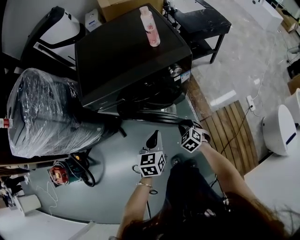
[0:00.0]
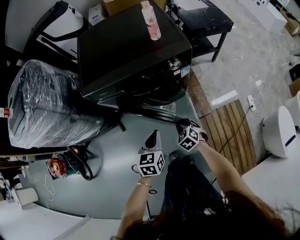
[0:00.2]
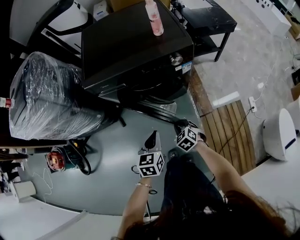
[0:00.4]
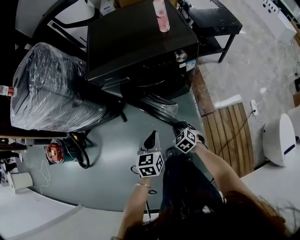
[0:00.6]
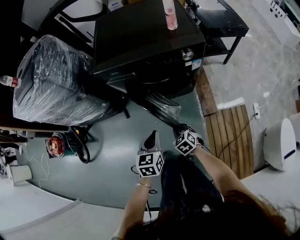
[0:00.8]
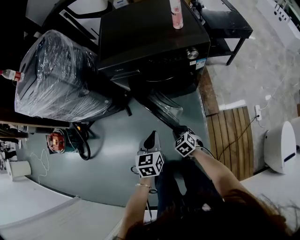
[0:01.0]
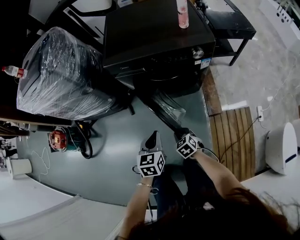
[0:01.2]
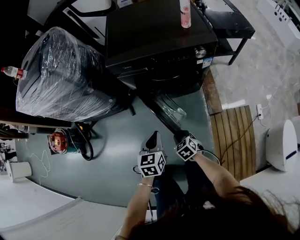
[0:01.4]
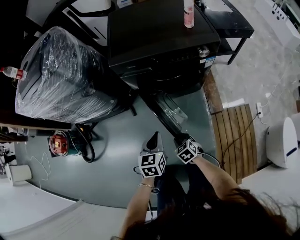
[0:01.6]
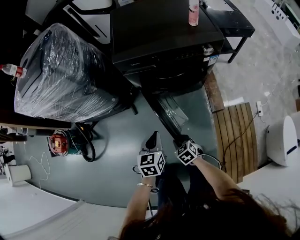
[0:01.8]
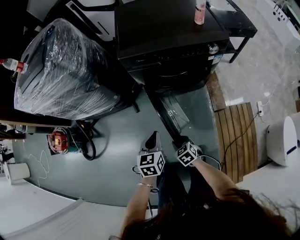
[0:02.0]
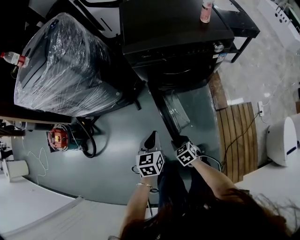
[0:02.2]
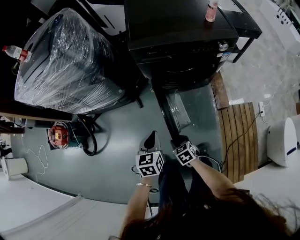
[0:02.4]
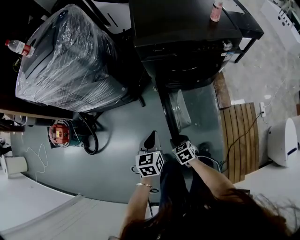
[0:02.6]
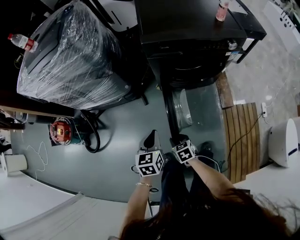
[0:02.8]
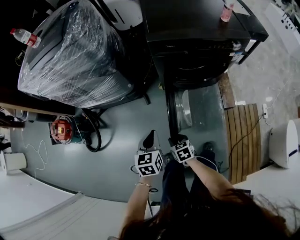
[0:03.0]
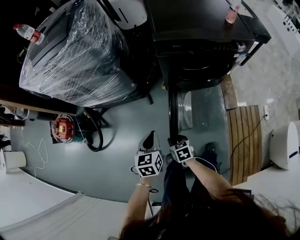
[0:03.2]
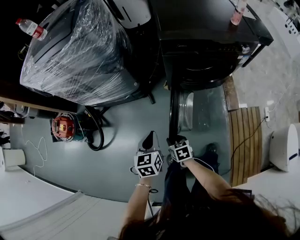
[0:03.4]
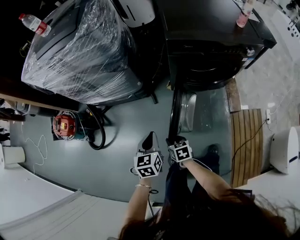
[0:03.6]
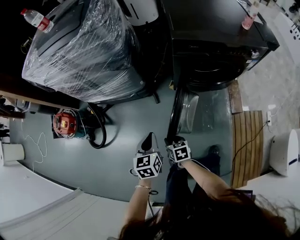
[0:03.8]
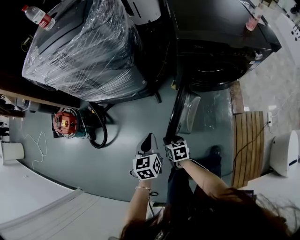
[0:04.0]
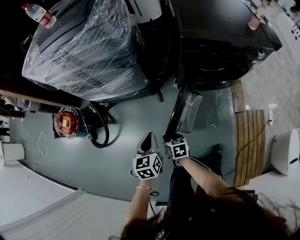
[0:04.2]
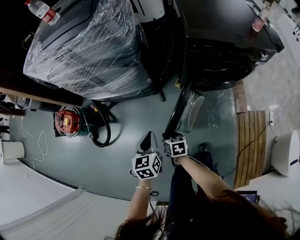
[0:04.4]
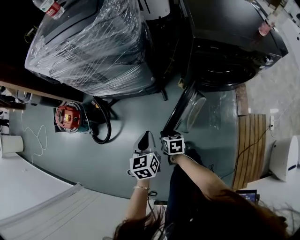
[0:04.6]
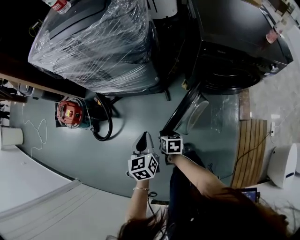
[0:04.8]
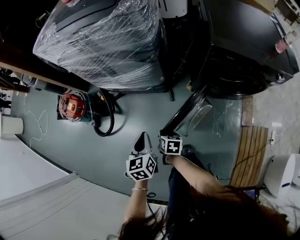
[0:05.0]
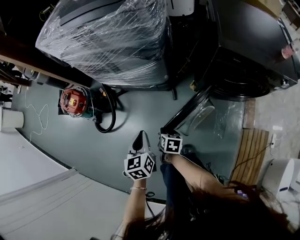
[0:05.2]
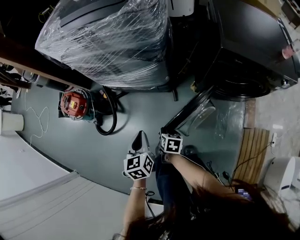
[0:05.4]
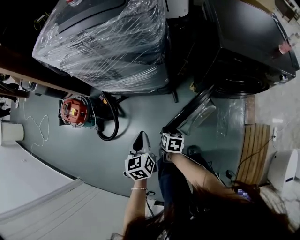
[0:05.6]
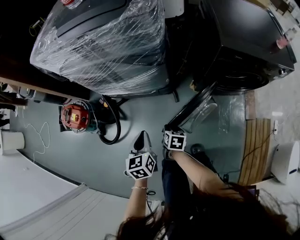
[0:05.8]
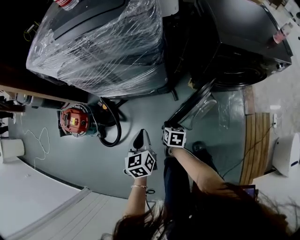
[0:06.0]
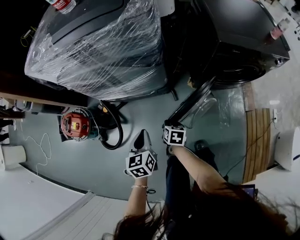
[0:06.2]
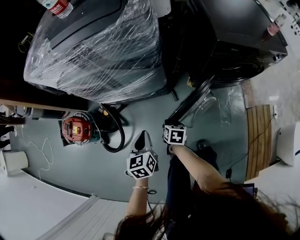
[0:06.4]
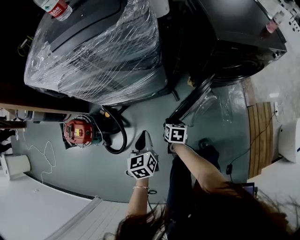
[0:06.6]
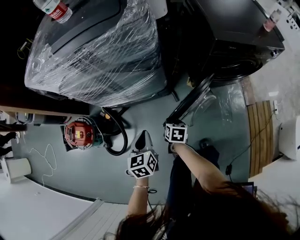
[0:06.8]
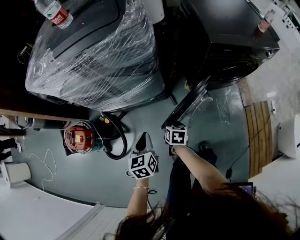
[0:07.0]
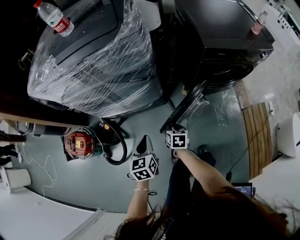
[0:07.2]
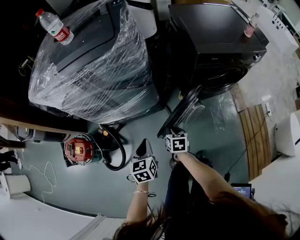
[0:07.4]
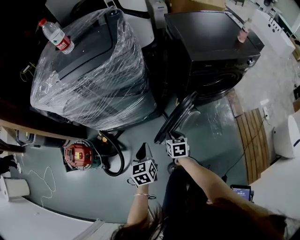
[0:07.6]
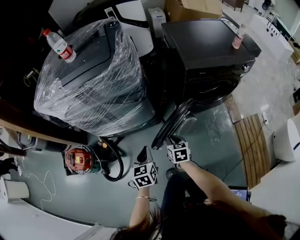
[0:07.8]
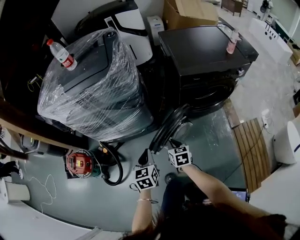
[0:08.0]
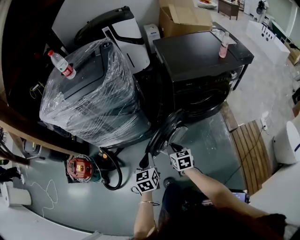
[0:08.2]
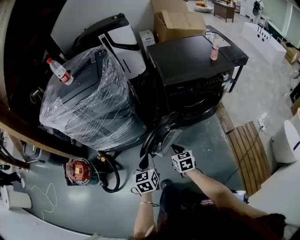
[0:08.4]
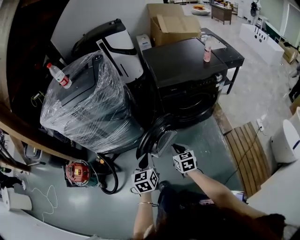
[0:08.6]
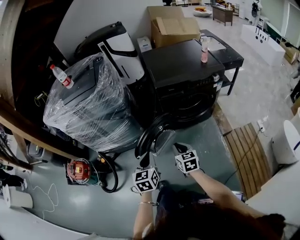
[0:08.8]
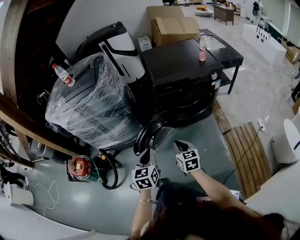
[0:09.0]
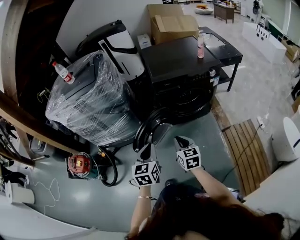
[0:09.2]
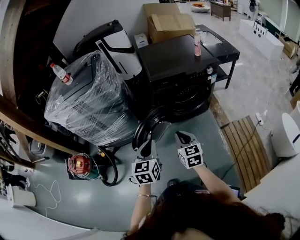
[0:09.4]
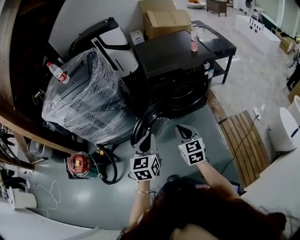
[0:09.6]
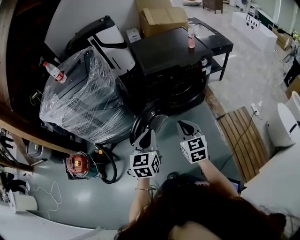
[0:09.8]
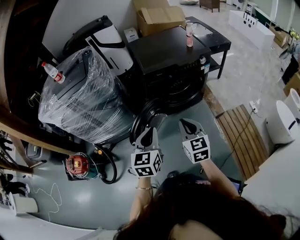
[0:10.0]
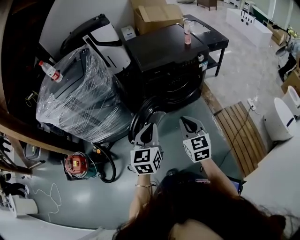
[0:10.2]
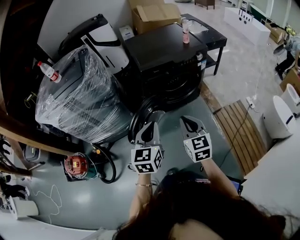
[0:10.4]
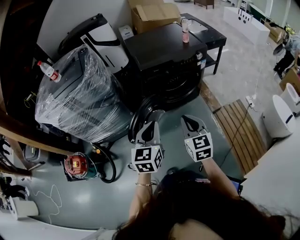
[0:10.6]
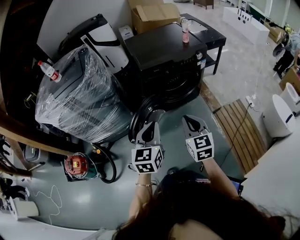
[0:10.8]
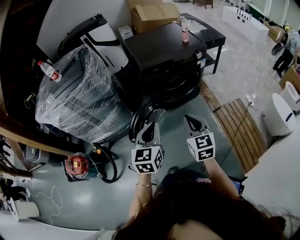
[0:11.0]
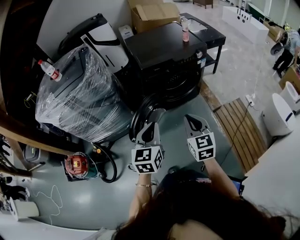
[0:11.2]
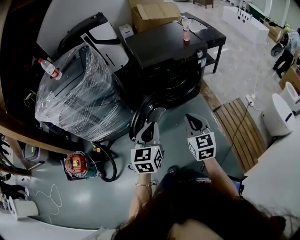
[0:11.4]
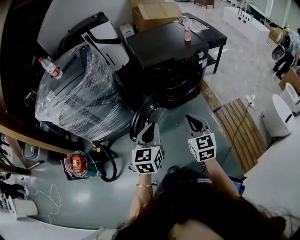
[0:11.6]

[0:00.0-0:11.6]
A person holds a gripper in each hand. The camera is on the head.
0:00.0 to 0:01.4: Both grippers travel together to the left and backward, approximately 20 cm.
0:01.4 to 0:02.8: The two grippers go some 20 cm to the left.
0:02.8 to 0:04.4: The right gripper goes some 20 cm to the left and forward. The left gripper moves to the left, some 20 cm.
0:04.4 to 0:05.8: The right gripper shifts approximately 15 cm forward and to the left. The left gripper travels to the left and forward by roughly 15 cm.
0:05.8 to 0:07.2: The right gripper moves roughly 5 cm.
0:07.2 to 0:08.8: Both grippers travel together to the right, upward and backward, about 35 cm. The right gripper turns by roughly 30 degrees.
0:08.8 to 0:10.2: The left gripper is displaced upward and to the right by some 15 cm. Meanwhile the right gripper moves upward, to the right and backward, about 20 cm, and changes its angle by some 20 degrees.
0:10.2 to 0:11.6: The grippers move only a little.

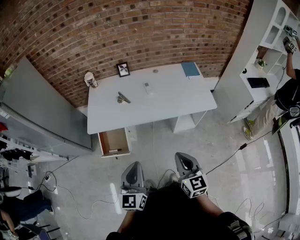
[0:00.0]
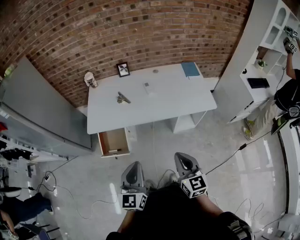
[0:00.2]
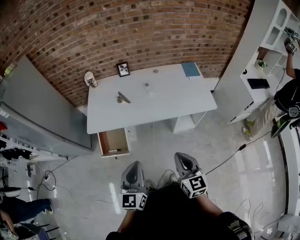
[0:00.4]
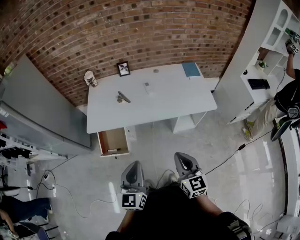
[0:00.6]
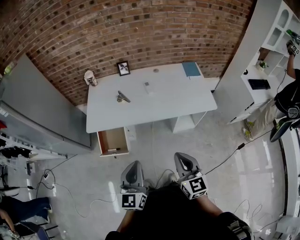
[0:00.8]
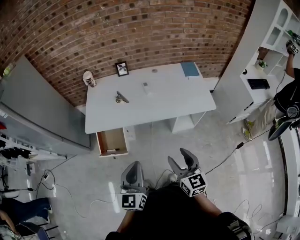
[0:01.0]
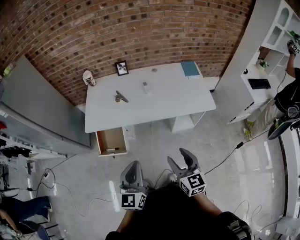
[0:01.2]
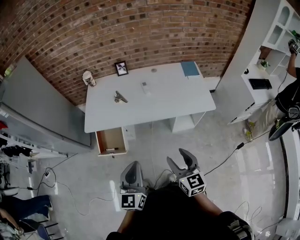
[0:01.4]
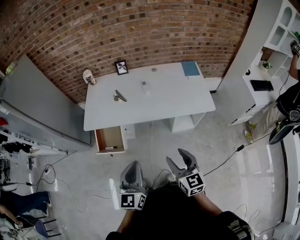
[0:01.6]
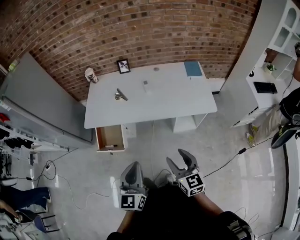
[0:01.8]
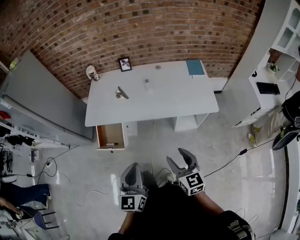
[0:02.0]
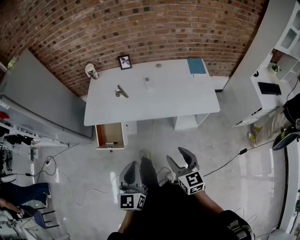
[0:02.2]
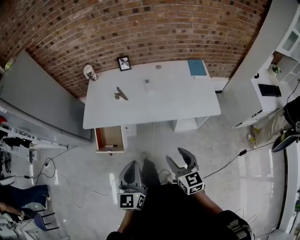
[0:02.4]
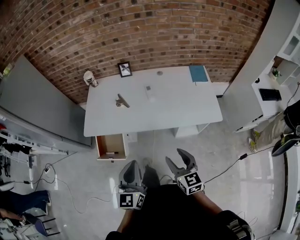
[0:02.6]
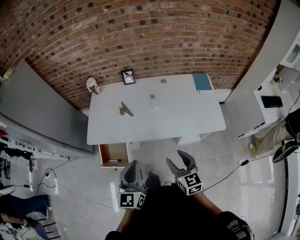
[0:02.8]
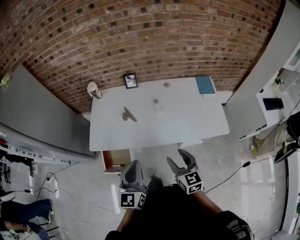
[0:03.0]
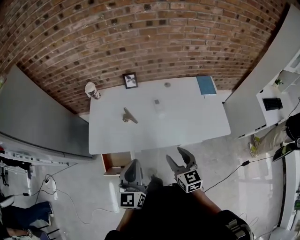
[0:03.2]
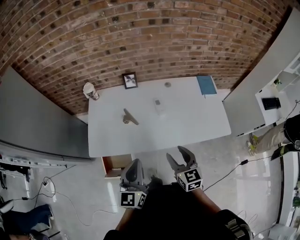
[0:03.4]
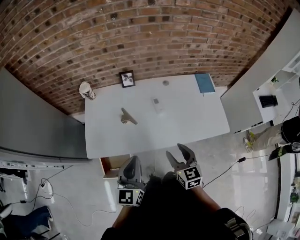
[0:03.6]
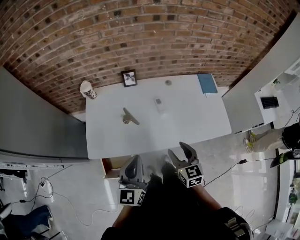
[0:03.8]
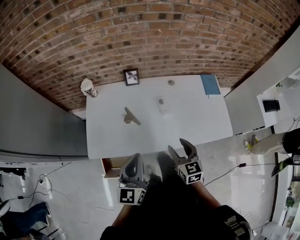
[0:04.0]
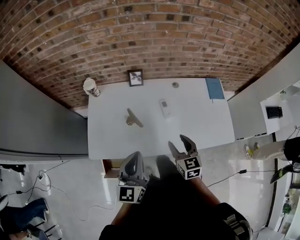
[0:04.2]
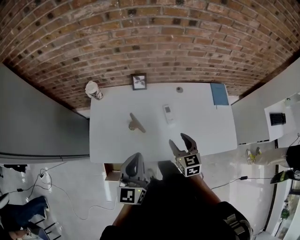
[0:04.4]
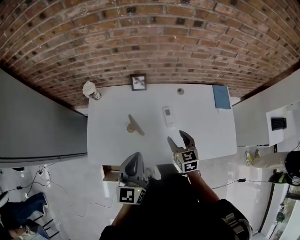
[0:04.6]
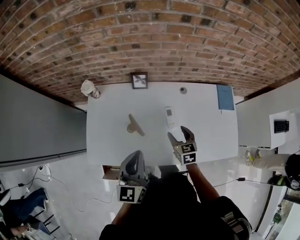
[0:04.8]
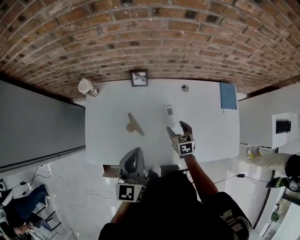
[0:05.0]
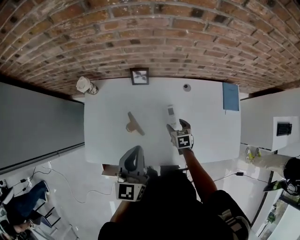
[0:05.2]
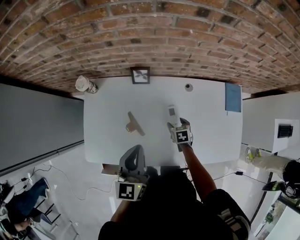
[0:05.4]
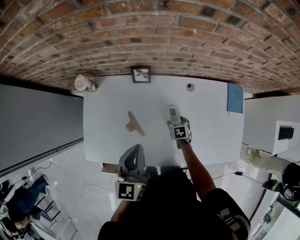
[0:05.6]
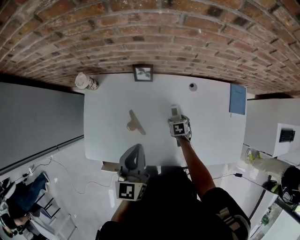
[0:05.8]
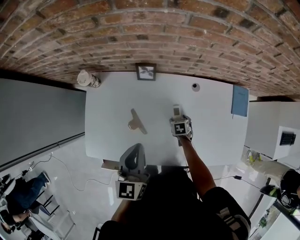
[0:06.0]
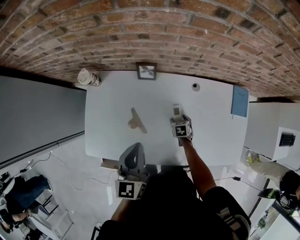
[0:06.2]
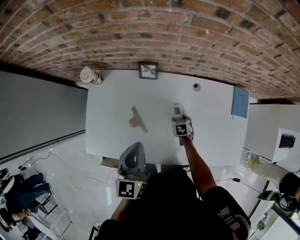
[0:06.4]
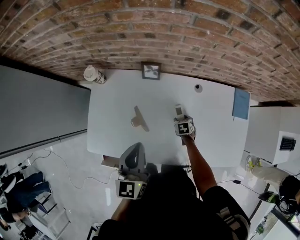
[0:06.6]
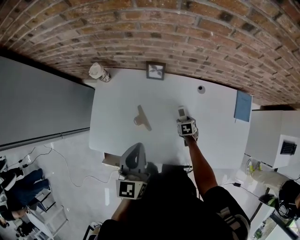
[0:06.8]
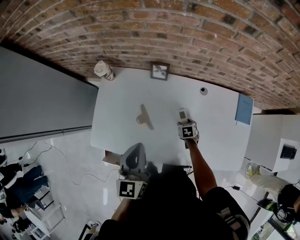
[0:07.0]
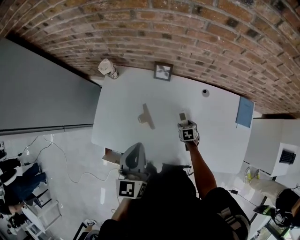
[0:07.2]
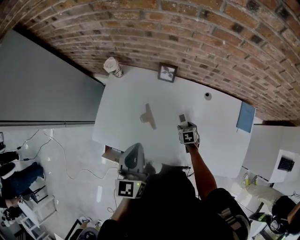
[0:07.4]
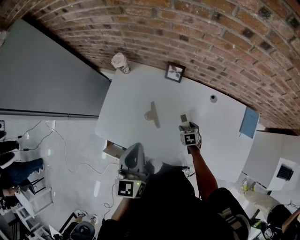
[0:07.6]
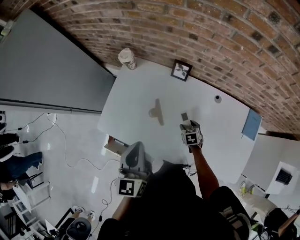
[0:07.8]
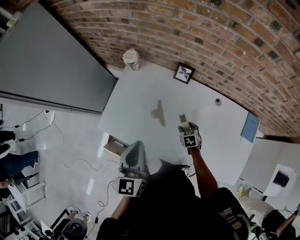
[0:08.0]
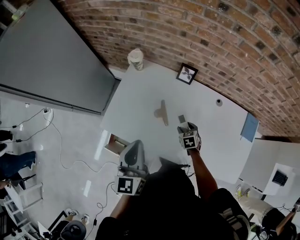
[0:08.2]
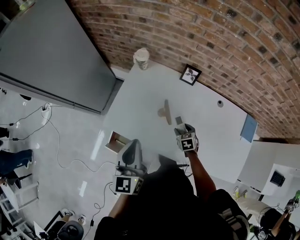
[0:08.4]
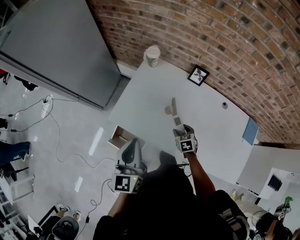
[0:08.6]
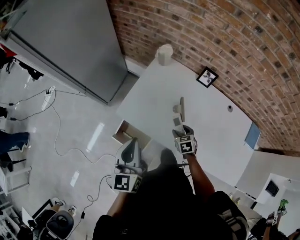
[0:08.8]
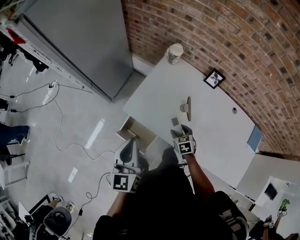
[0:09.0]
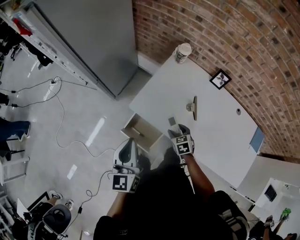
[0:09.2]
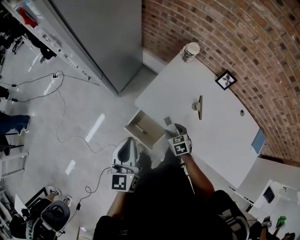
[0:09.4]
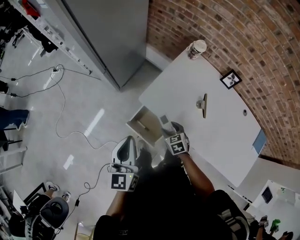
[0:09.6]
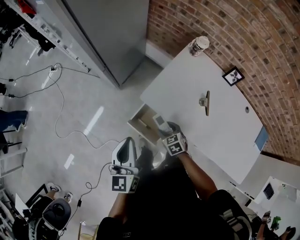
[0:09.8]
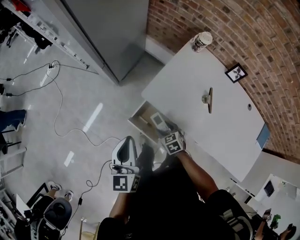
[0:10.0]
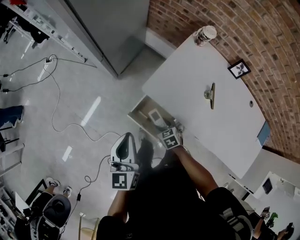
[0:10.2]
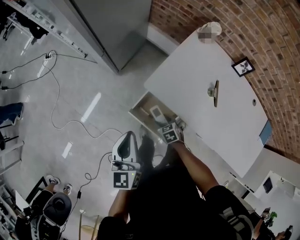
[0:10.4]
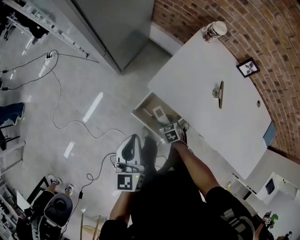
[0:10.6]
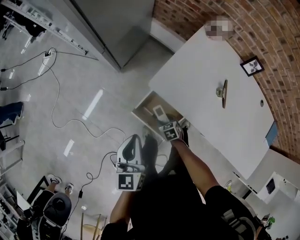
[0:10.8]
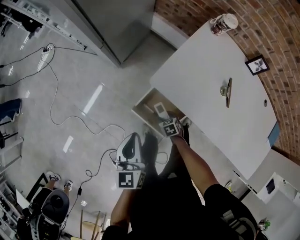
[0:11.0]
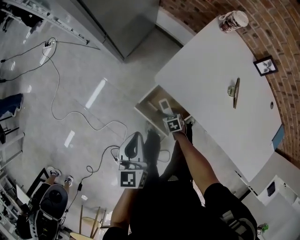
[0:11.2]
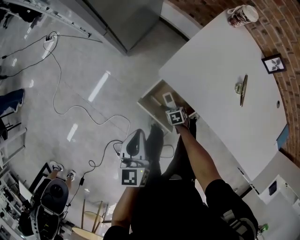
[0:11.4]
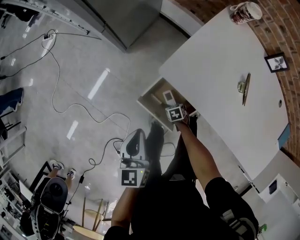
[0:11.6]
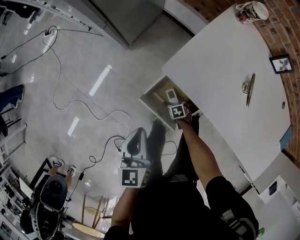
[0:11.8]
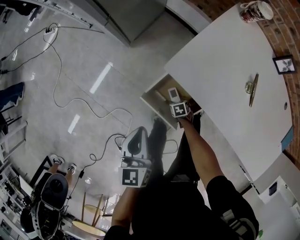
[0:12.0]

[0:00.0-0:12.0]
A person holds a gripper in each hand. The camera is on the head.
0:00.0 to 0:01.6: Both grippers travel together to the right, about 5 cm. The right gripper opens its fingers.
0:01.6 to 0:03.0: The two grippers go some 20 cm forward.
0:03.0 to 0:04.4: The grippers both shift forward by roughly 20 cm.
0:04.4 to 0:06.0: The left gripper is displaced forward by about 15 cm, while the right gripper is displaced downward and forward by some 35 cm, and points its fingers approximately 40 degrees further downward.
0:06.0 to 0:07.6: The left gripper goes about 10 cm backward and to the left; the right gripper shifts by roughly 5 cm, and turns by some 20 degrees.
0:07.6 to 0:09.0: Both grippers move to the left, roughly 30 cm. The right gripper swivels roughly 20 degrees.
0:09.0 to 0:10.4: The right gripper is displaced to the left and downward by approximately 30 cm, while the left gripper is displaced to the left and downward by some 20 cm.
0:10.4 to 0:12.0: The grippers both shift downward by about 20 cm.
